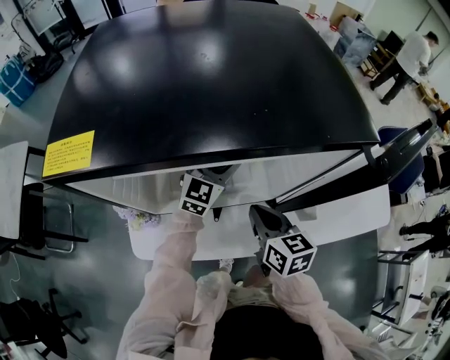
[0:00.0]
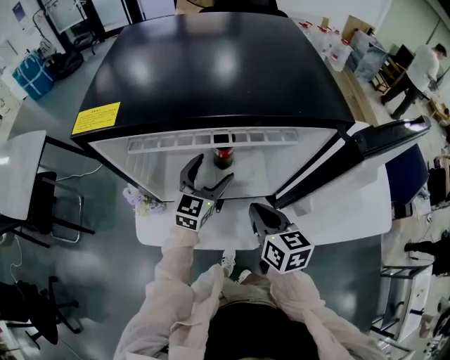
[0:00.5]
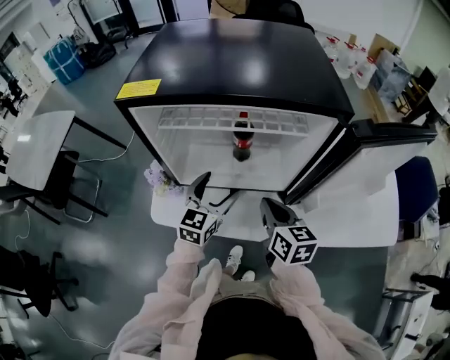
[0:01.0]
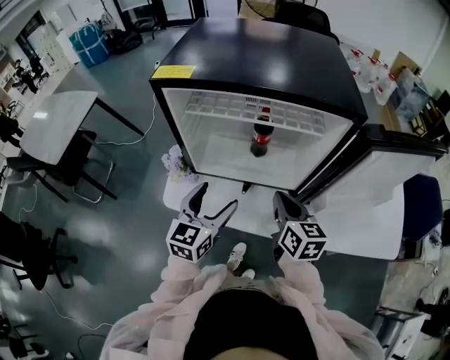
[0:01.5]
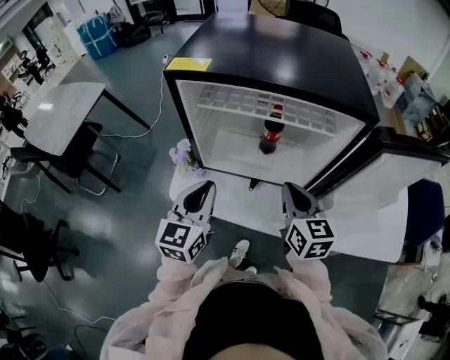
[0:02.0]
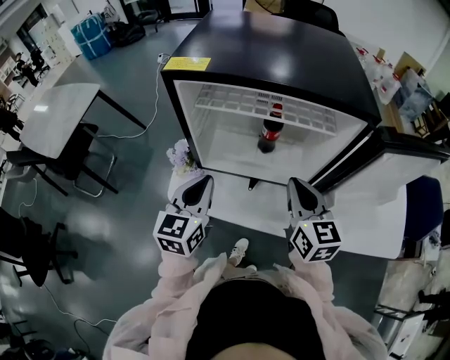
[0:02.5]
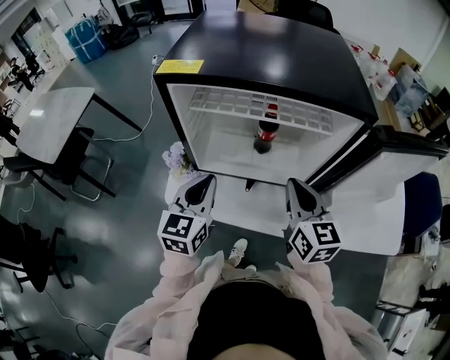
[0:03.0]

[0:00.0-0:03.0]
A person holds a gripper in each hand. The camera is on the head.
0:00.0 to 0:01.5: The left gripper moves backward, approximately 25 cm, and changes its angle by roughly 30 degrees. Meanwhile the right gripper moves backward and upward, some 10 cm.
0:01.5 to 0:03.0: The right gripper is displaced upward by some 5 cm, while the left gripper shifts by roughly 5 cm, and closes.

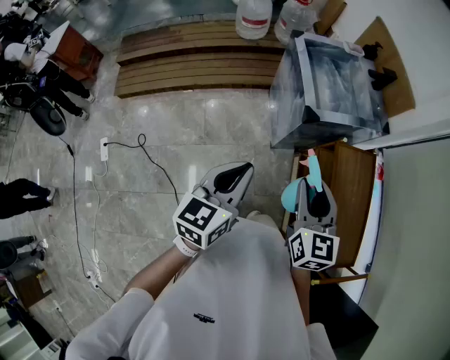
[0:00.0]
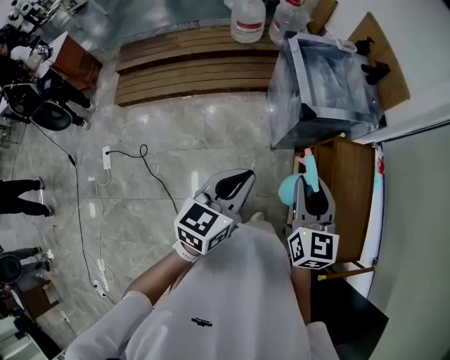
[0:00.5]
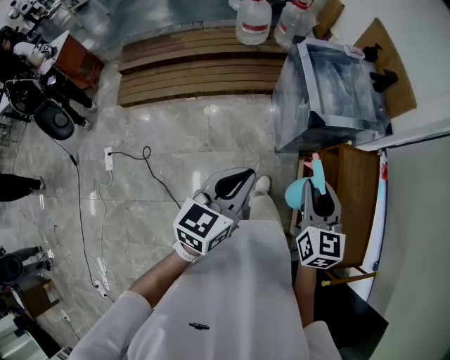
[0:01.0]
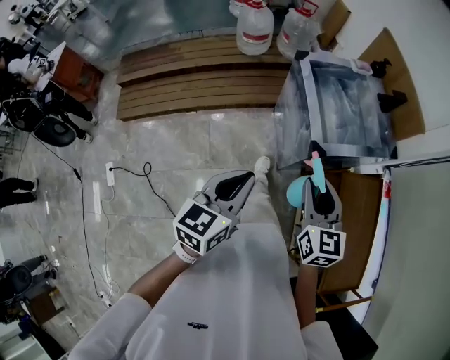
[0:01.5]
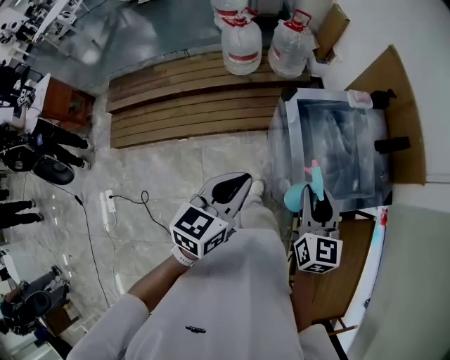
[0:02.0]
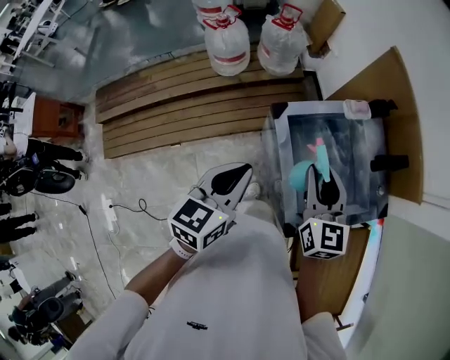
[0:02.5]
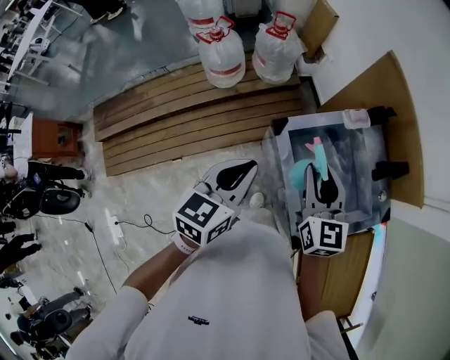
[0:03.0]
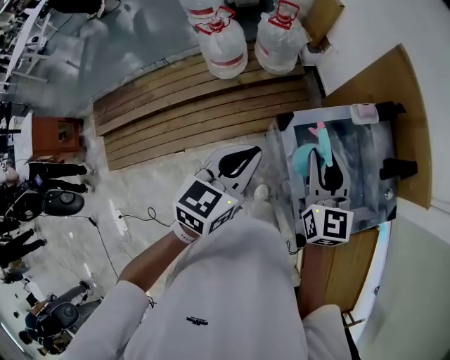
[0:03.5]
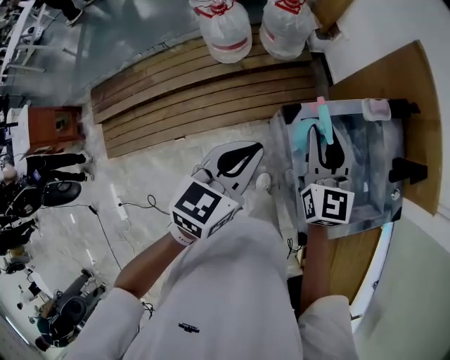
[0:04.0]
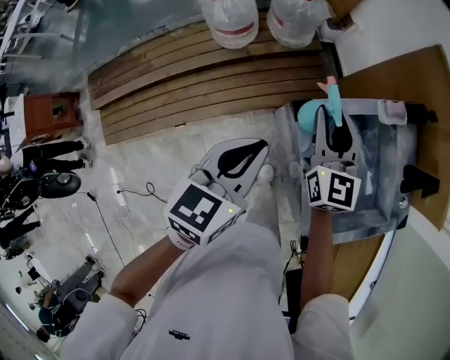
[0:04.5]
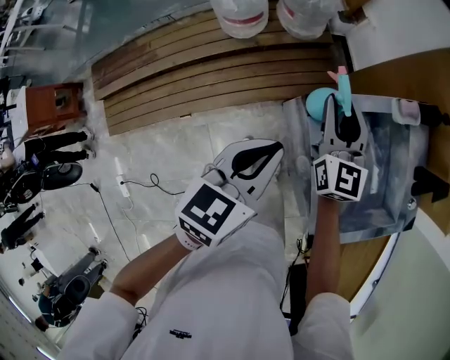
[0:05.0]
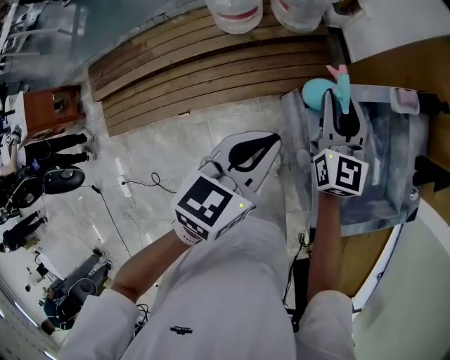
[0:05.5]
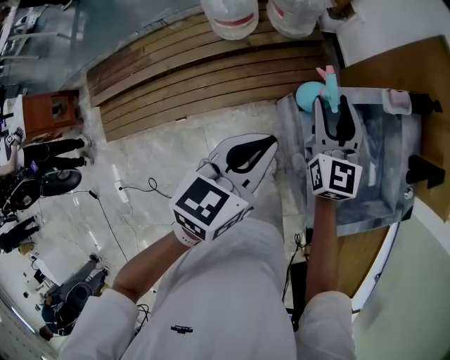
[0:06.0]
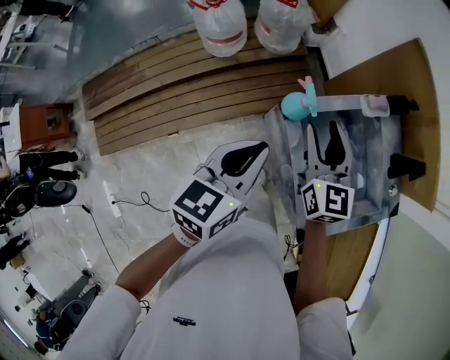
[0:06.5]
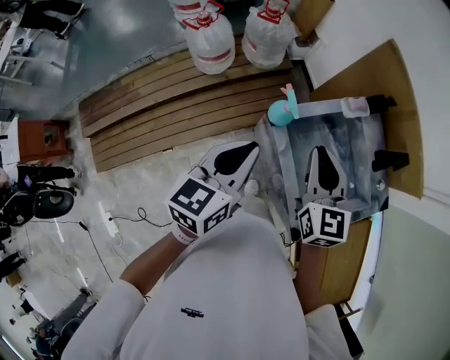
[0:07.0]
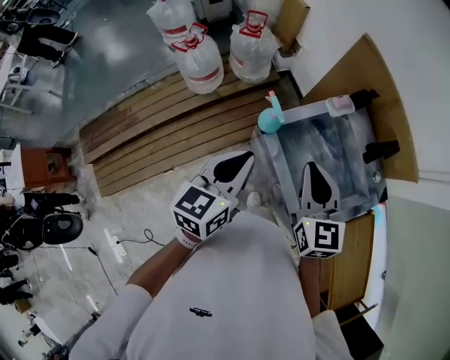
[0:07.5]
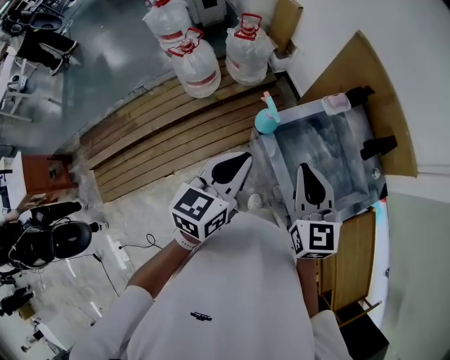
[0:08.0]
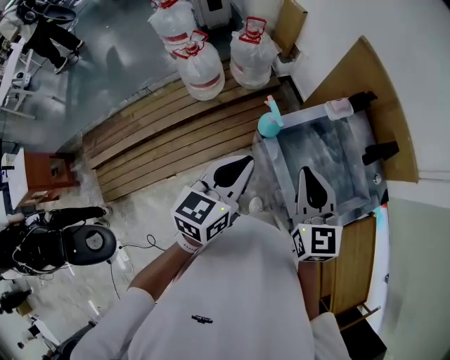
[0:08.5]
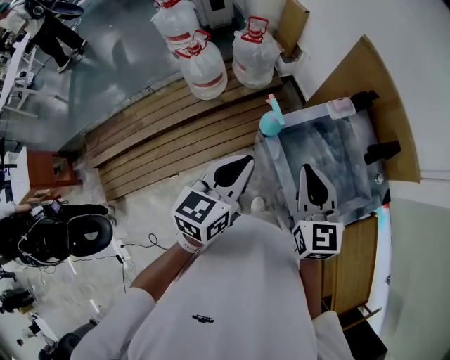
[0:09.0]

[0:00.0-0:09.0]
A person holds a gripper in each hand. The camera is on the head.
0:00.0 to 0:02.0: Both grippers move forward, about 40 cm.
0:02.0 to 0:04.5: The left gripper shifts roughly 25 cm forward, while the right gripper heads forward and to the left, covering some 35 cm.
0:04.5 to 0:07.0: The left gripper travels upward by approximately 5 cm. The right gripper travels backward, upward and to the right by roughly 15 cm, and closes its fingers.
0:07.0 to 0:09.0: The right gripper changes place by roughly 5 cm.

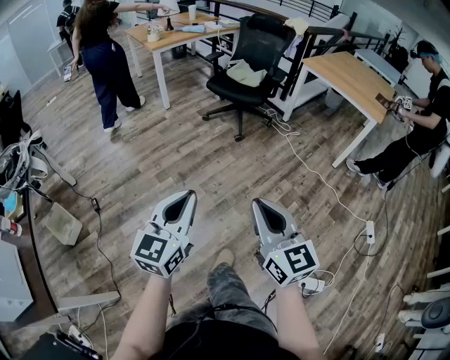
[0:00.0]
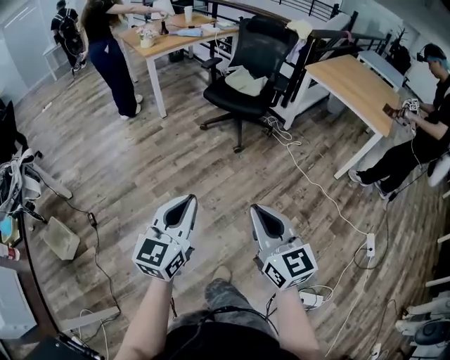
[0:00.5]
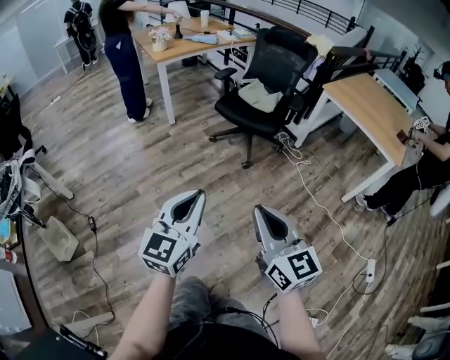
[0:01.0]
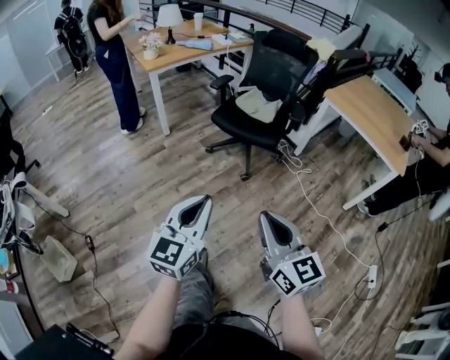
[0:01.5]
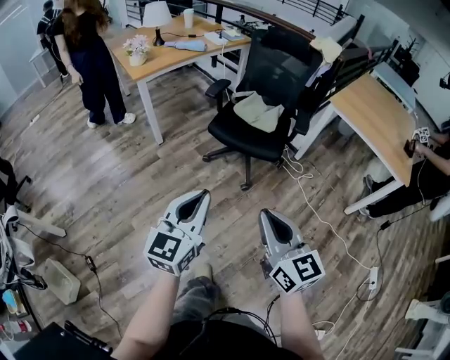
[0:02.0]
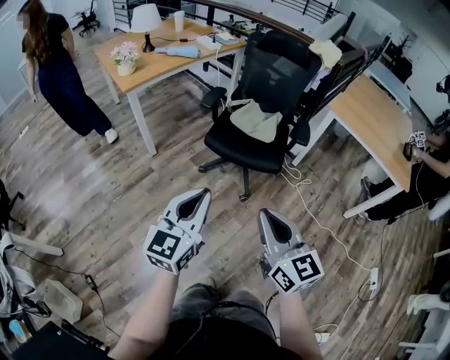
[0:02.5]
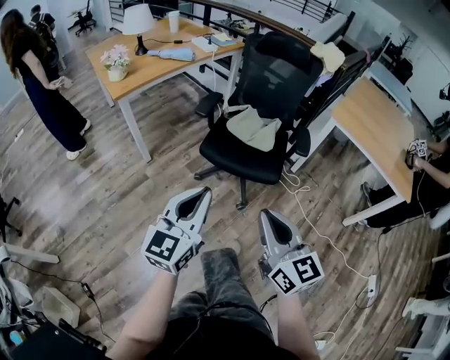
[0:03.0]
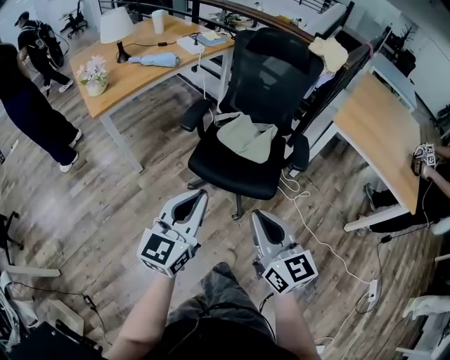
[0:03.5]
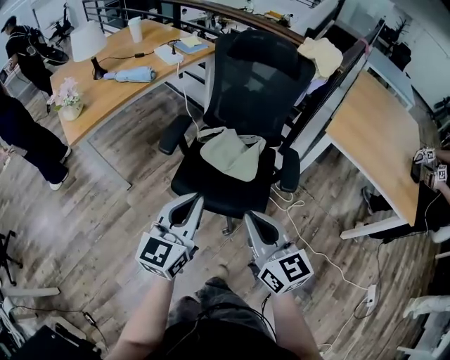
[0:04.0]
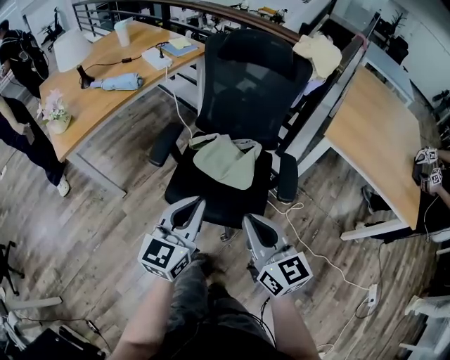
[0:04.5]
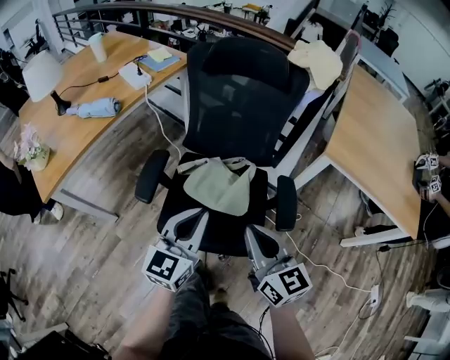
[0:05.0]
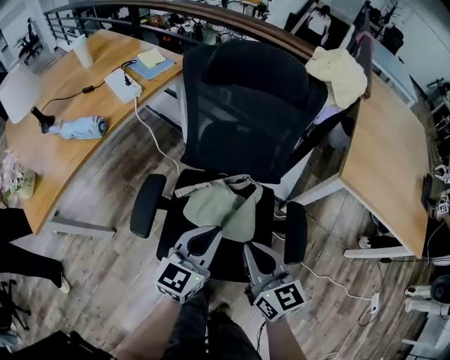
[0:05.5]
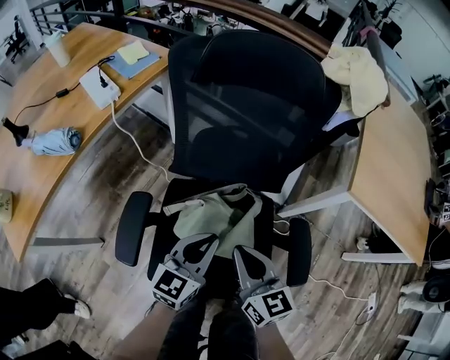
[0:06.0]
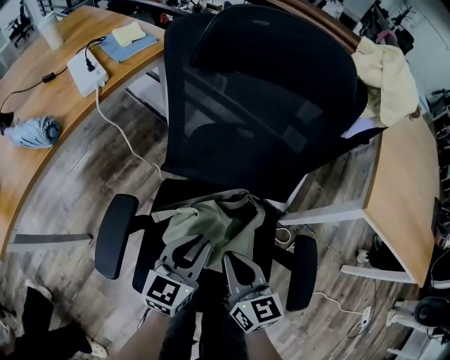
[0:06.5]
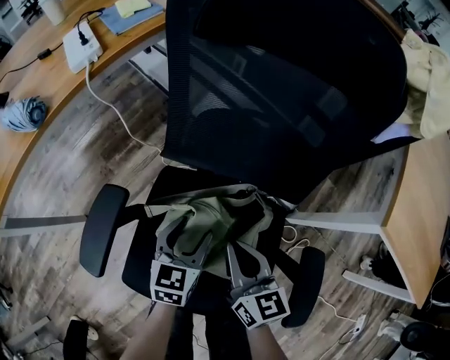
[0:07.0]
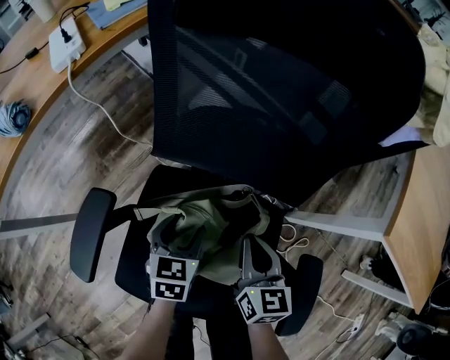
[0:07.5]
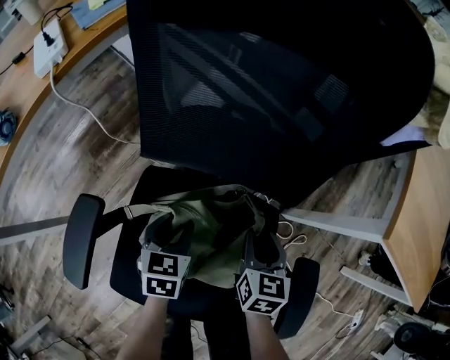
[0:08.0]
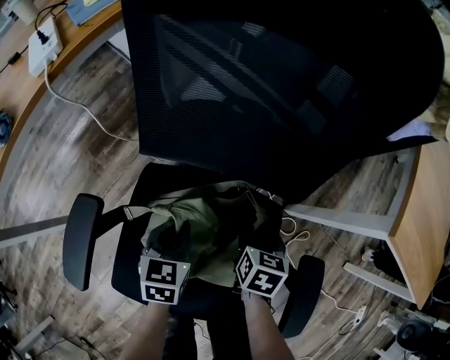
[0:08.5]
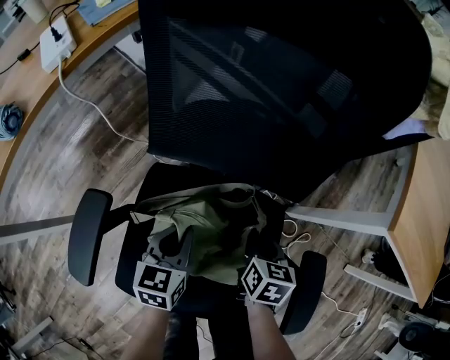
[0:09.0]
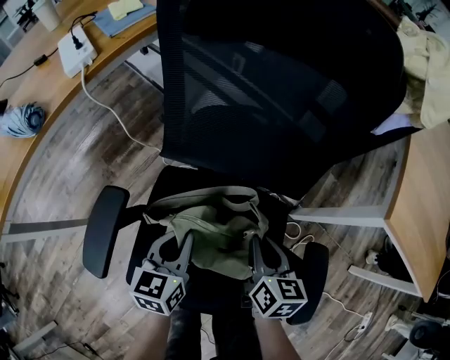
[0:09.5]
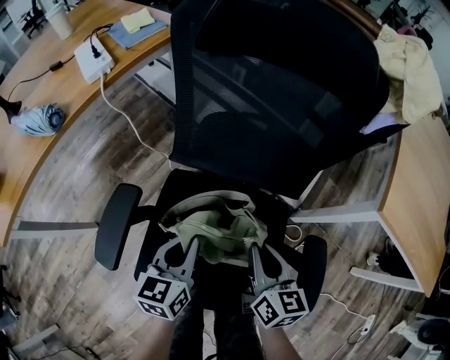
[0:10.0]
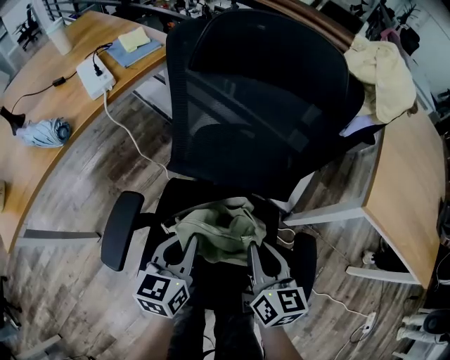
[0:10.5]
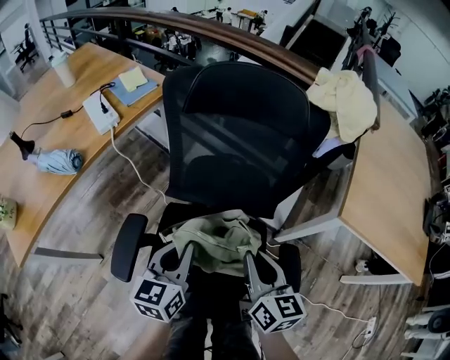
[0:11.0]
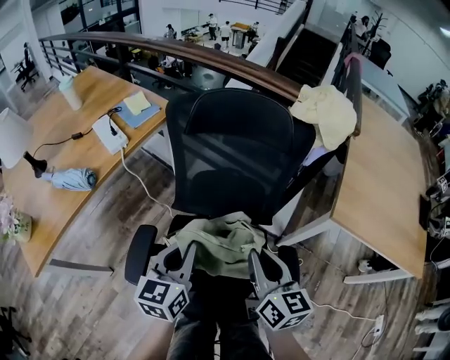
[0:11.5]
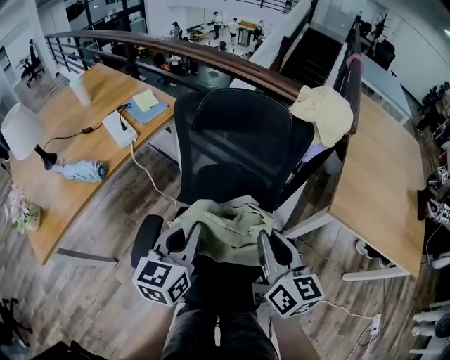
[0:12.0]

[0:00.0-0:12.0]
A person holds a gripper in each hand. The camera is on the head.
0:00.0 to 0:02.0: The pair of grippers is taken forward, roughly 50 cm.
0:02.0 to 0:04.0: The pair of grippers is taken forward, some 40 cm.
0:04.0 to 0:06.0: The grippers both shift forward and downward by some 40 cm. The left gripper turns by some 20 degrees.
0:06.0 to 0:08.0: The right gripper goes about 25 cm downward, forward and to the right, rotates about 30 degrees, and opens its fingers. The left gripper moves downward and forward, approximately 25 cm, angles its fingers downward, by approximately 40 degrees, and opens up.
0:08.0 to 0:10.0: Both grippers travel together upward and backward, roughly 15 cm. The right gripper swivels about 20 degrees, and opens and closes again. The left gripper rotates approximately 30 degrees, and closes.
0:10.0 to 0:12.0: Both grippers move upward, approximately 25 cm.

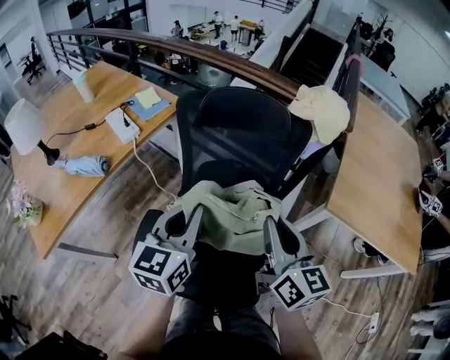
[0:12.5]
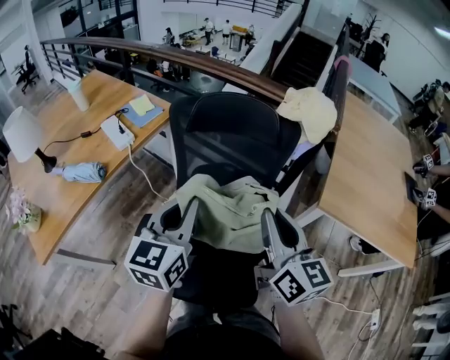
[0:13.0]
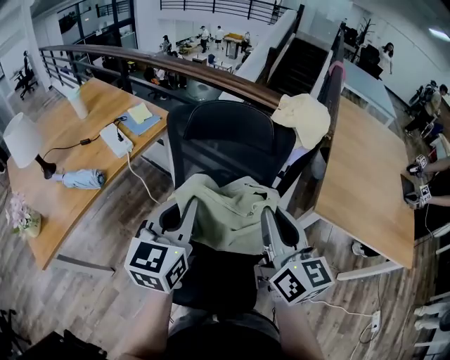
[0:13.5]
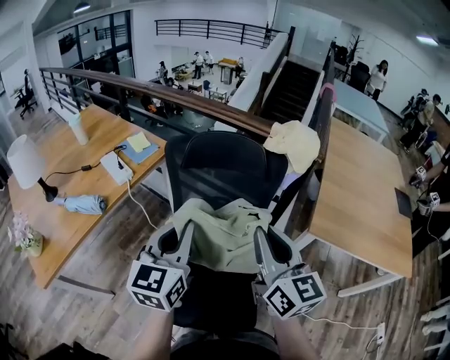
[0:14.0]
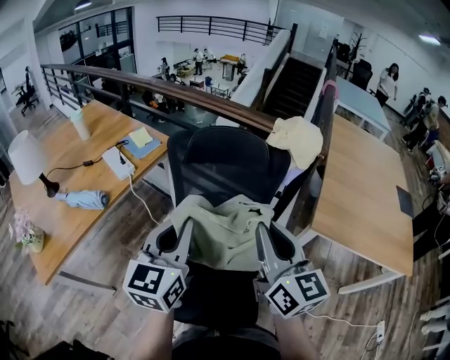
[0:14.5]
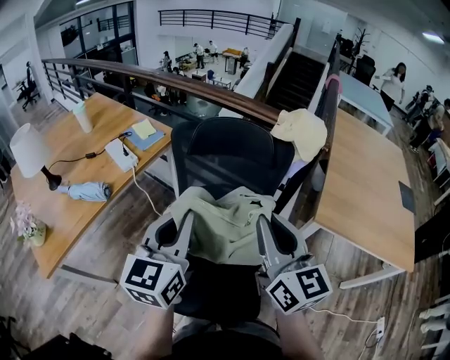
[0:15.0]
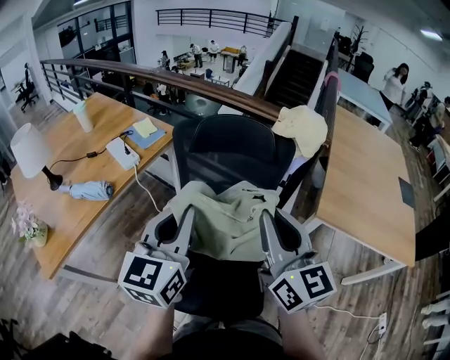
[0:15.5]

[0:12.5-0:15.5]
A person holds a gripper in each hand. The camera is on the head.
0:12.5 to 0:14.0: The two grippers go some 5 cm upward.
0:14.0 to 0:15.5: The left gripper ends up some 5 cm from where it was.
